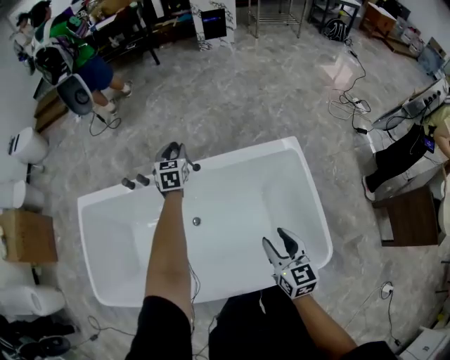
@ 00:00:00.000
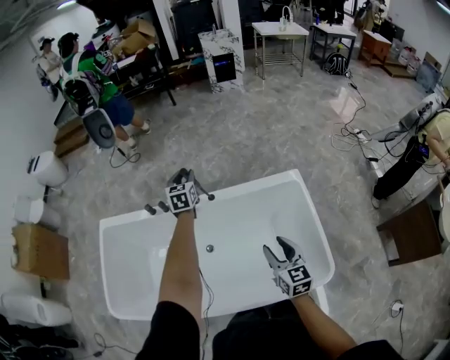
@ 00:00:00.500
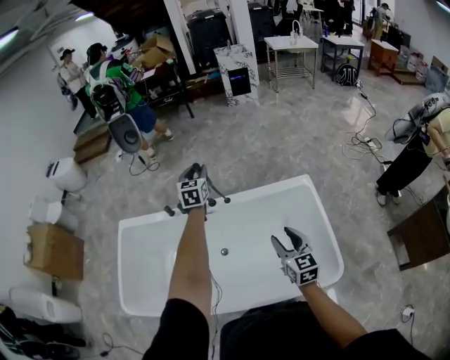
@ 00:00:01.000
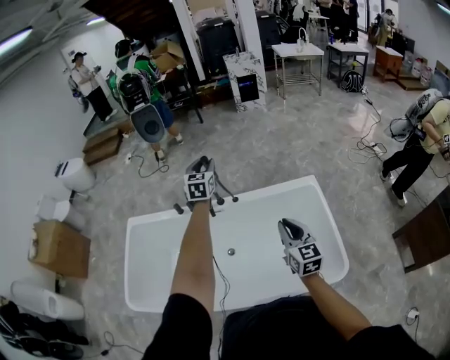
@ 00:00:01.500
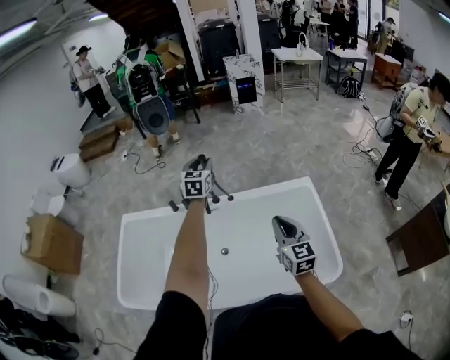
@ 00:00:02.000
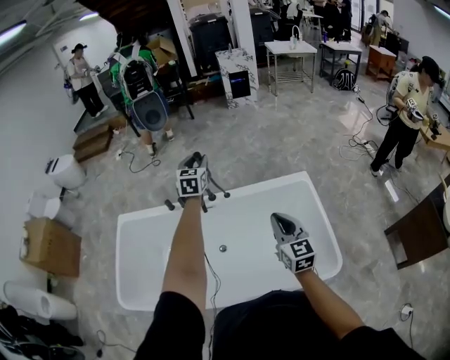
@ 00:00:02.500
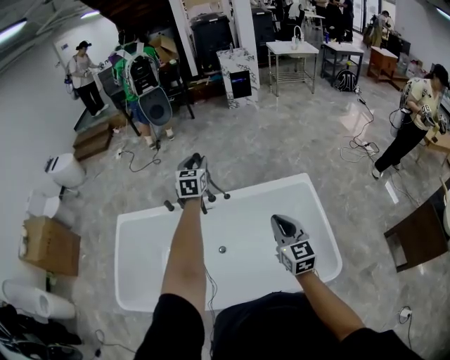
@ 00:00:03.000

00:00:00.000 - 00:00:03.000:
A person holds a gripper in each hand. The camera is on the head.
00:00:00.000 - 00:00:01.500: The right gripper heads upward, covering roughly 15 cm, and closes; the left gripper moves upward, roughly 25 cm.
00:00:01.500 - 00:00:03.000: The grippers stay close to where they were, moving slightly.

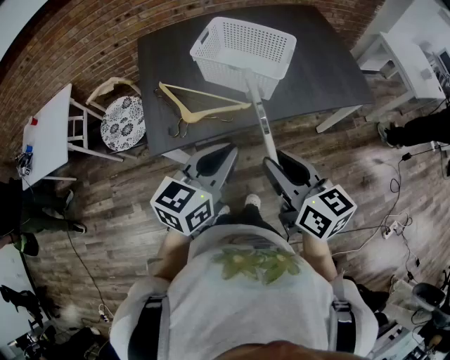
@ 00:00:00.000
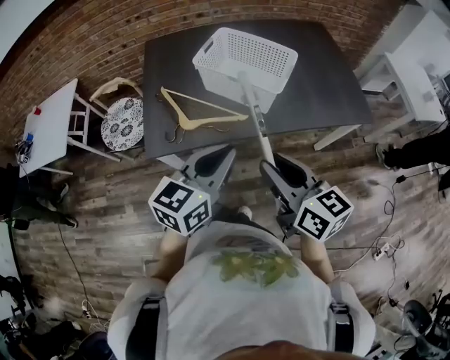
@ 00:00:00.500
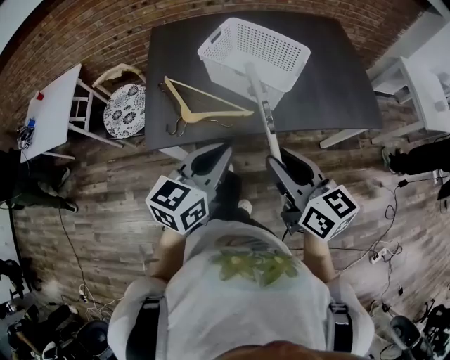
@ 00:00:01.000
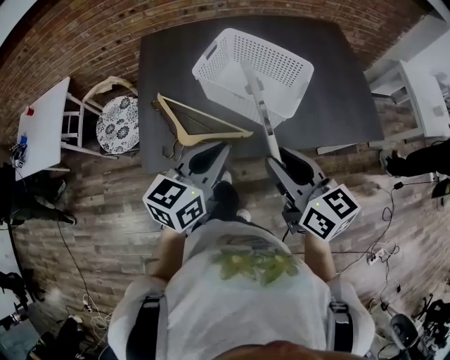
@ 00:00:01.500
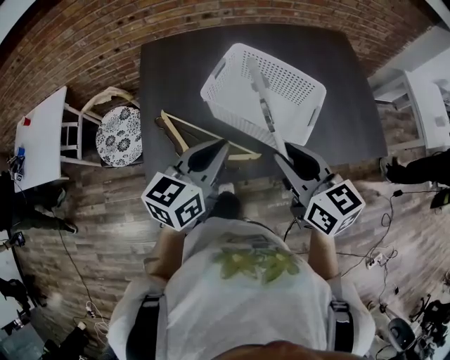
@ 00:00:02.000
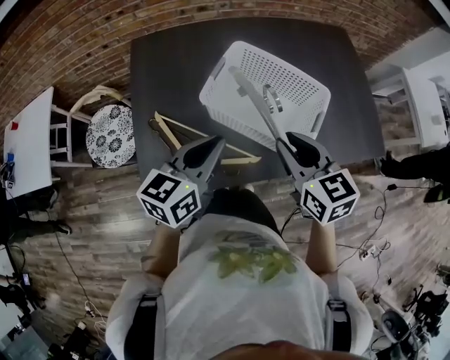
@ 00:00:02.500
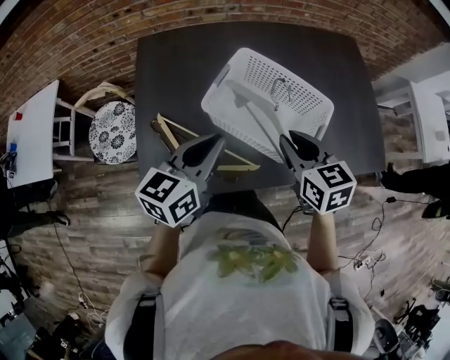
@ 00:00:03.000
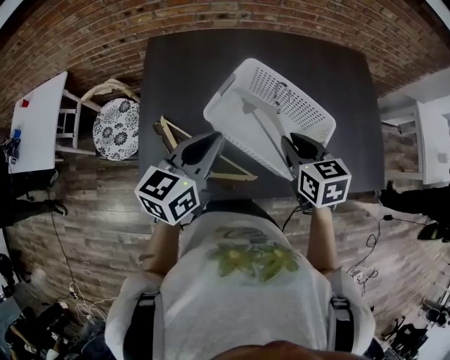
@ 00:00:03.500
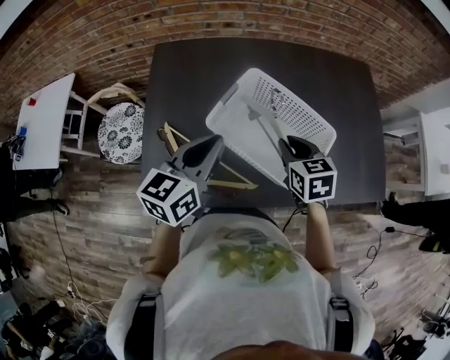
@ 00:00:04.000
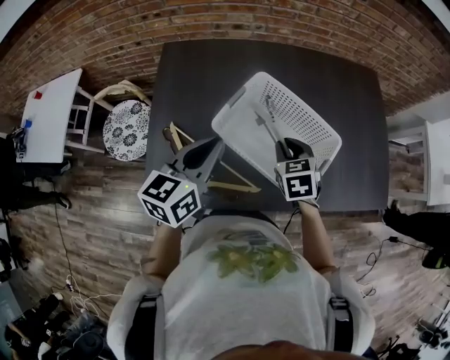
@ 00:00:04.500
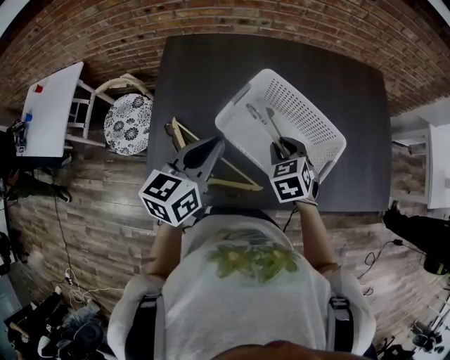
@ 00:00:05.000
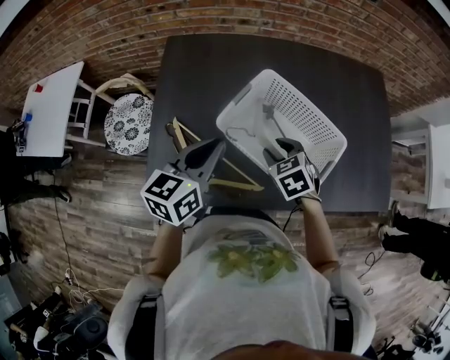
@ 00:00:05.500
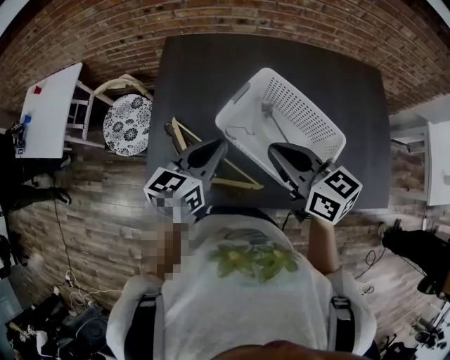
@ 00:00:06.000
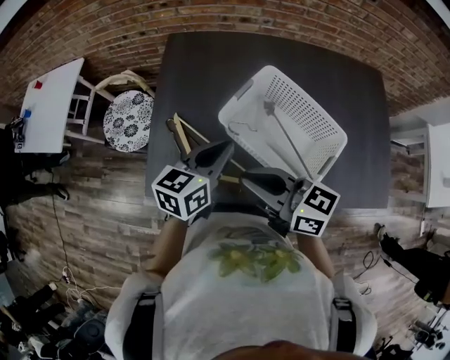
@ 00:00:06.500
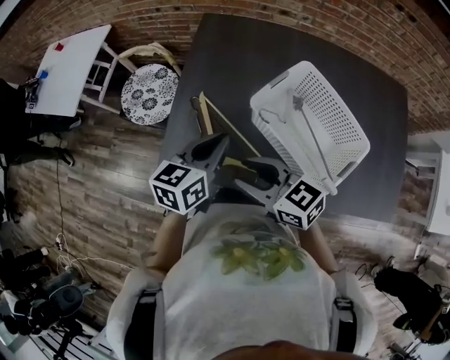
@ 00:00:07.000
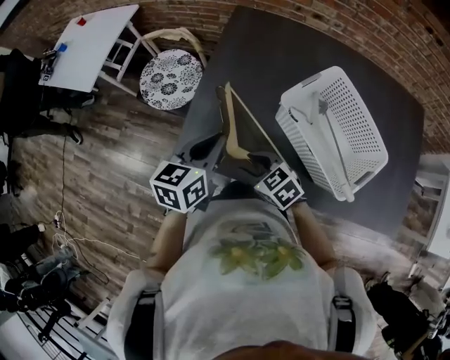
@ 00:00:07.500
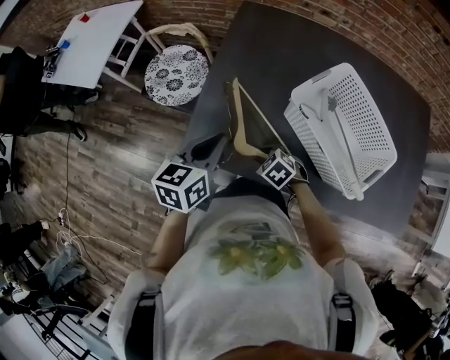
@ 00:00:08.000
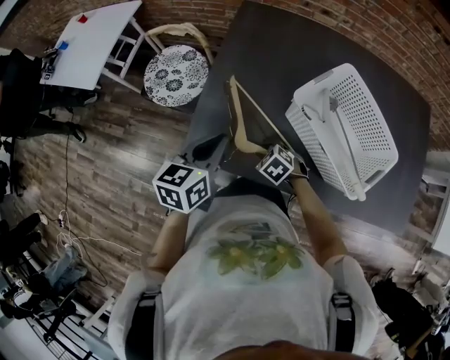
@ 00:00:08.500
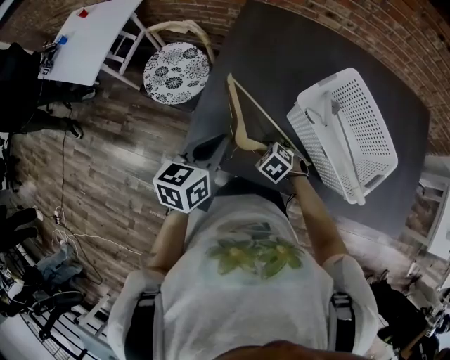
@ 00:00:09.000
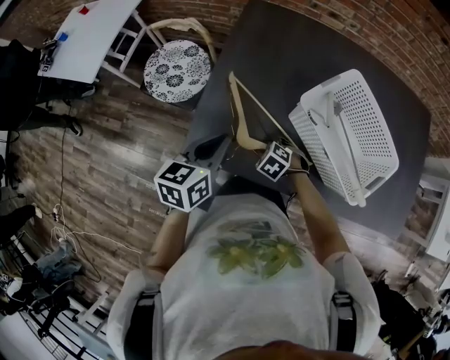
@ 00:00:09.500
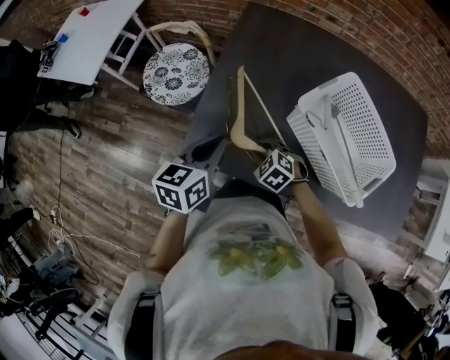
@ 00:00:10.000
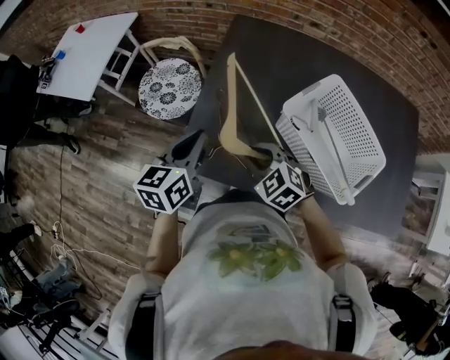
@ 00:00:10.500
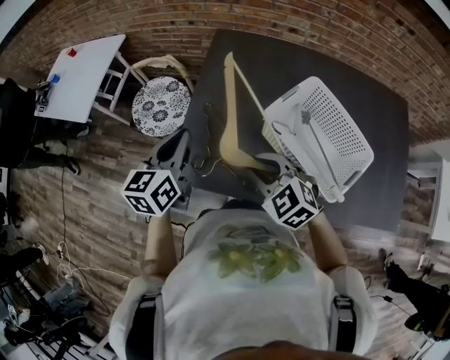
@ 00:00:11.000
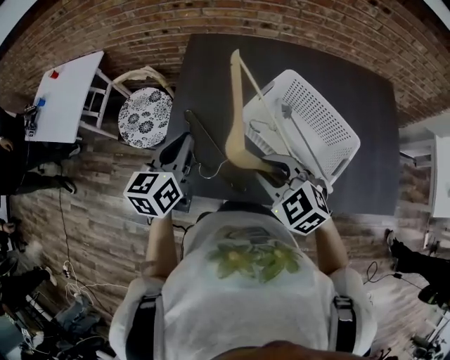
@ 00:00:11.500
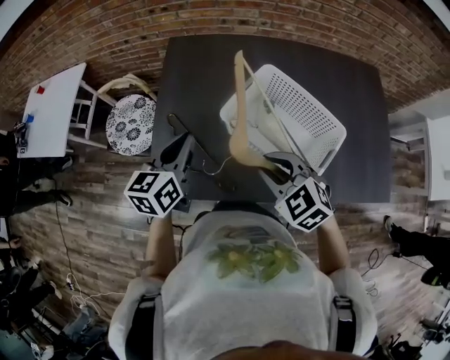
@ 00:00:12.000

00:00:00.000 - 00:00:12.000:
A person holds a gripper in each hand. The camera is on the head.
00:00:00.000 - 00:00:02.000: The two grippers go approximately 25 cm forward.
00:00:02.000 - 00:00:04.000: The right gripper shifts approximately 20 cm forward and downward, and changes its angle by some 30 degrees; the left gripper travels forward by some 10 cm.
00:00:04.000 - 00:00:06.000: The right gripper shifts about 10 cm upward and to the left, and changes its angle by approximately 40 degrees.
00:00:06.000 - 00:00:08.000: The left gripper changes place by roughly 20 cm, and swivels roughly 20 degrees. The right gripper heads downward, covering about 30 cm, angles its fingers downward, by approximately 50 degrees, and opens up.
00:00:08.000 - 00:00:10.000: The right gripper ends up roughly 5 cm from where it was.
00:00:10.000 - 00:00:12.000: The right gripper goes approximately 30 cm upward and to the right, and rotates roughly 20 degrees. Meanwhile the left gripper is displaced to the right and upward by some 15 cm.

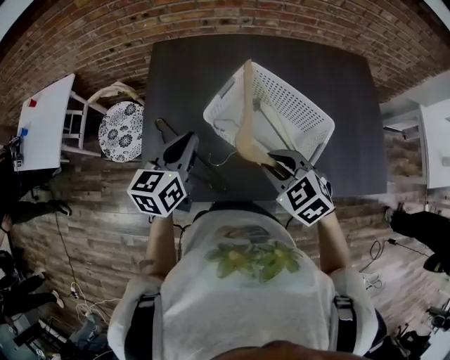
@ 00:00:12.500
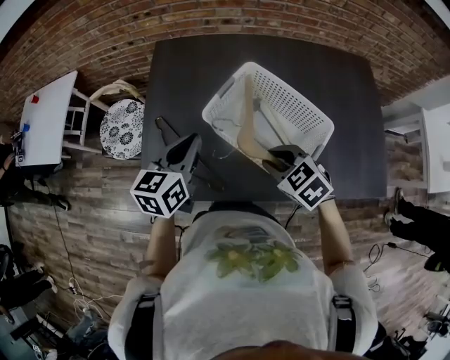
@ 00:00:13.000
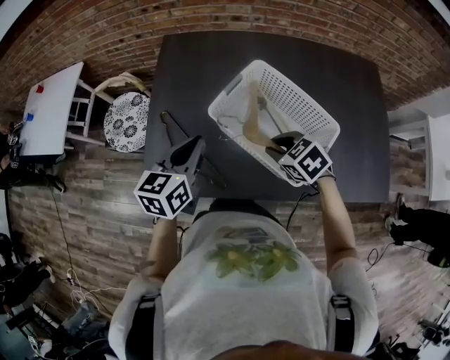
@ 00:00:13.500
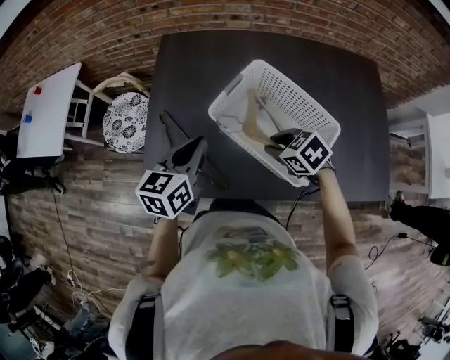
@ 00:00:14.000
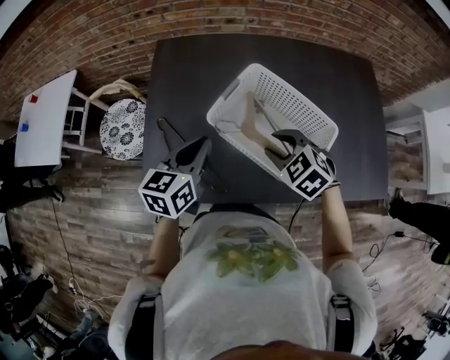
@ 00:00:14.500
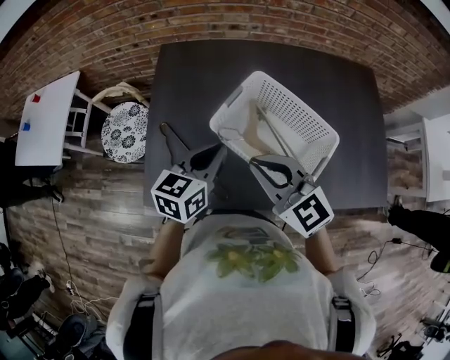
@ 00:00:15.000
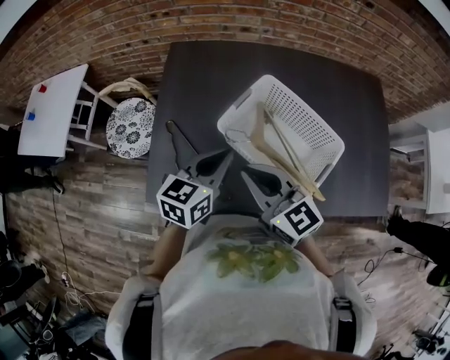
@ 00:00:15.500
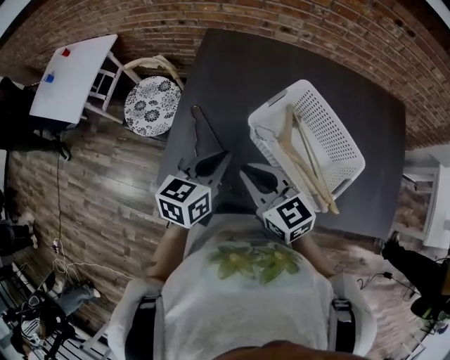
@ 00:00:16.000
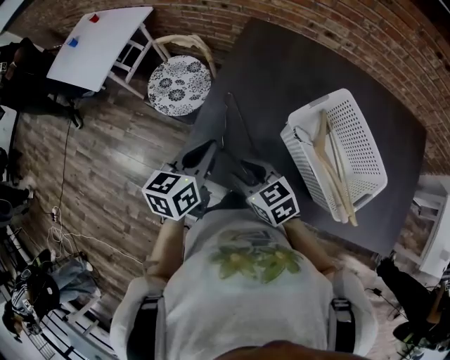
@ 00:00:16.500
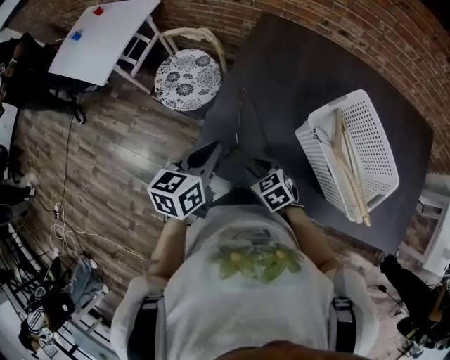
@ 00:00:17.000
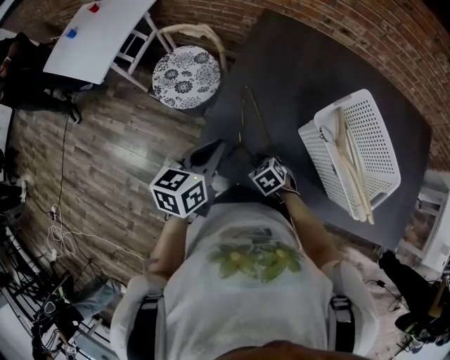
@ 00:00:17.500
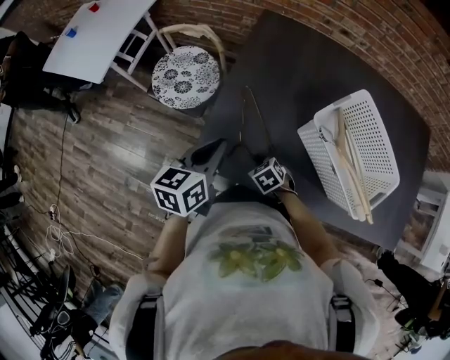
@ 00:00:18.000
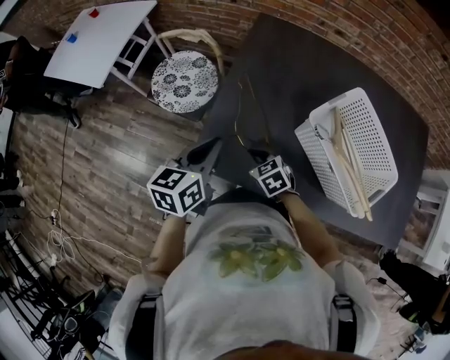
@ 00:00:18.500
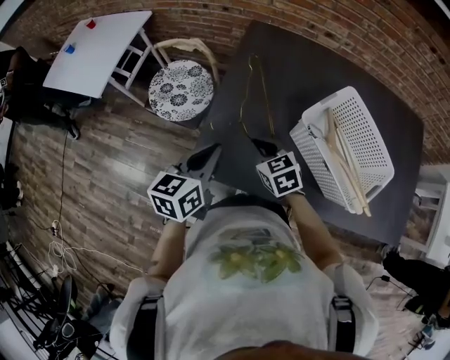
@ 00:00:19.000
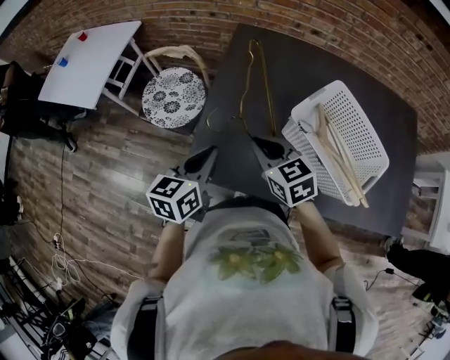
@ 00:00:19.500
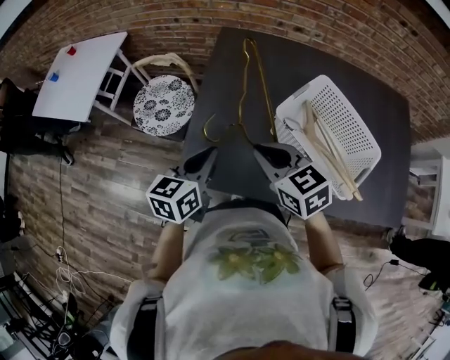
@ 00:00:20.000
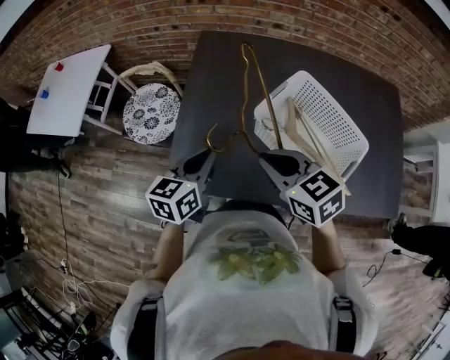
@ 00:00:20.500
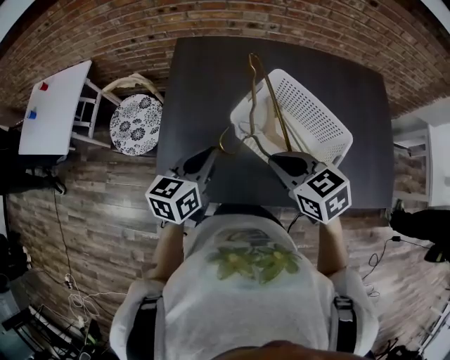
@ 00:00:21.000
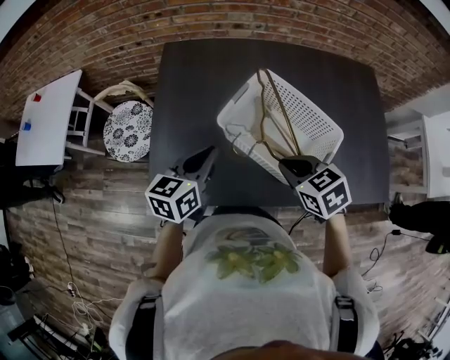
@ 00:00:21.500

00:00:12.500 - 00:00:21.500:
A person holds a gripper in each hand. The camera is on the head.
00:00:12.500 - 00:00:14.500: The right gripper is displaced forward by about 5 cm.
00:00:14.500 - 00:00:17.000: The right gripper moves about 30 cm, and closes, then reopens; the left gripper shifts by about 20 cm, and rotates about 20 degrees.
00:00:17.000 - 00:00:19.500: The right gripper moves upward, some 15 cm, swivels about 20 degrees, and closes.
00:00:19.500 - 00:00:21.500: The grippers both shift to the right by roughly 20 cm.

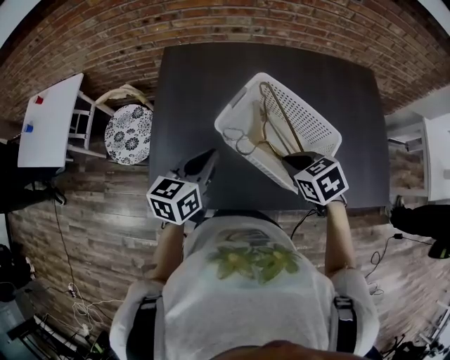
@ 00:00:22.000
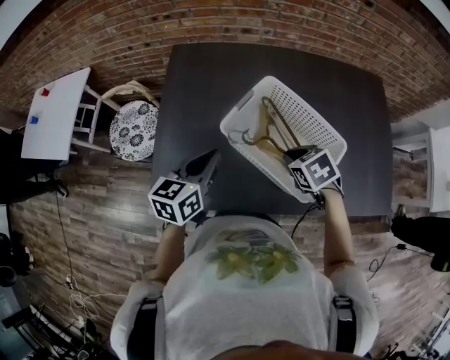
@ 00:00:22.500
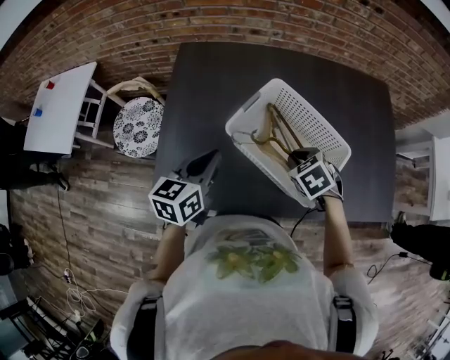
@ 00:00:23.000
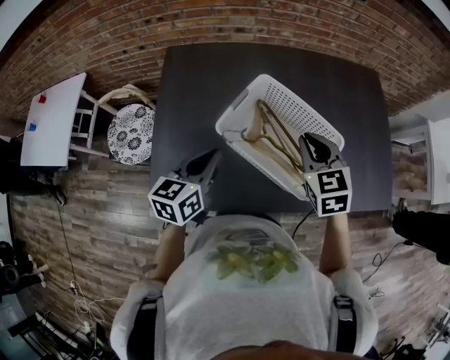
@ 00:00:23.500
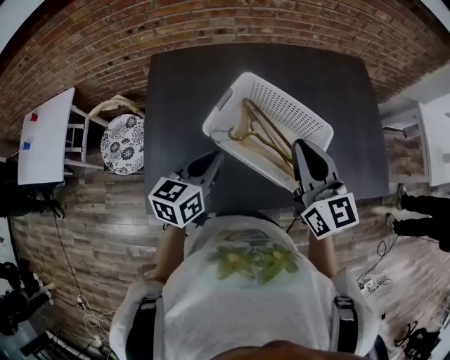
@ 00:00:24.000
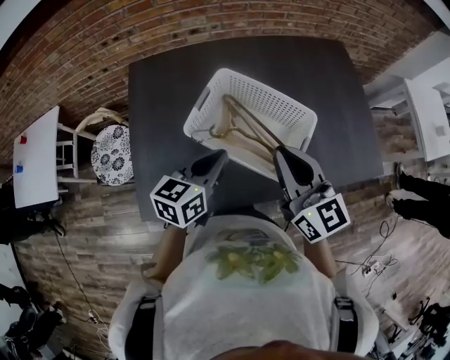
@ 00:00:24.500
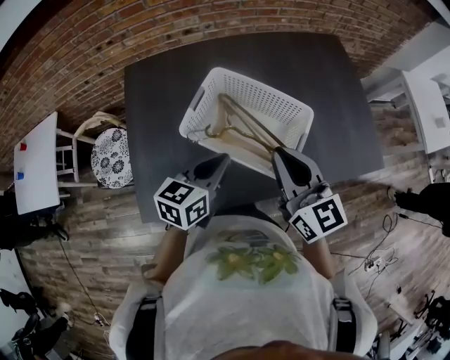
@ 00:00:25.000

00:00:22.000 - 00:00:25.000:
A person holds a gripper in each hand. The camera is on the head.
00:00:22.000 - 00:00:23.500: The right gripper is displaced upward and forward by roughly 10 cm, and swivels approximately 30 degrees.
00:00:23.500 - 00:00:25.000: The right gripper is displaced backward and upward by roughly 10 cm, and turns by approximately 40 degrees; the left gripper shifts about 10 cm to the right.
